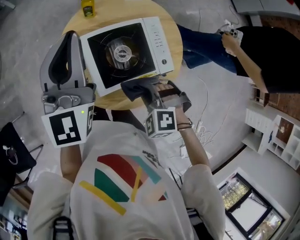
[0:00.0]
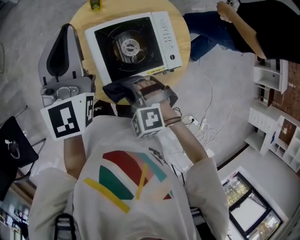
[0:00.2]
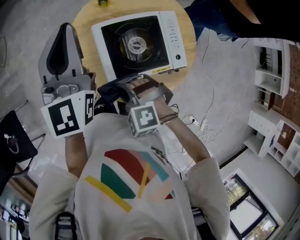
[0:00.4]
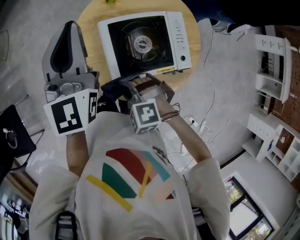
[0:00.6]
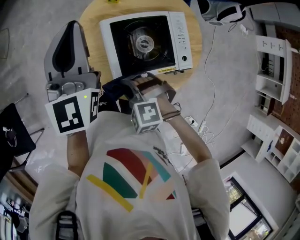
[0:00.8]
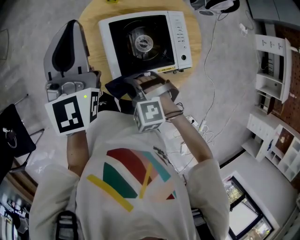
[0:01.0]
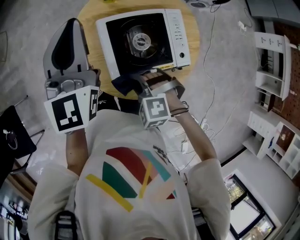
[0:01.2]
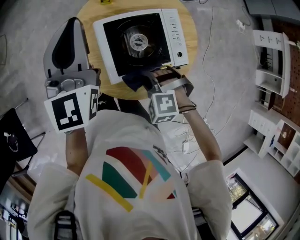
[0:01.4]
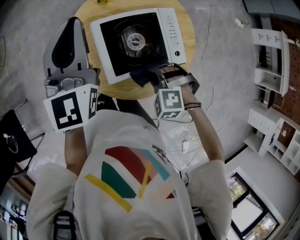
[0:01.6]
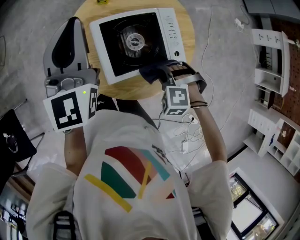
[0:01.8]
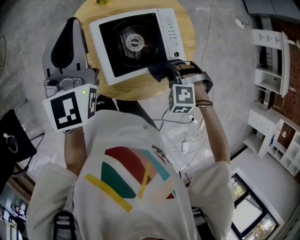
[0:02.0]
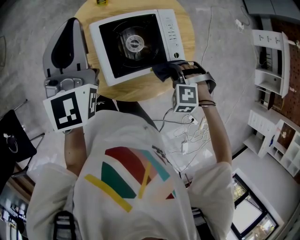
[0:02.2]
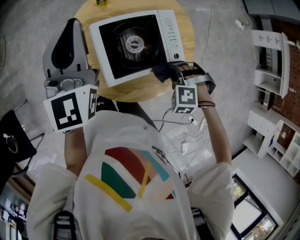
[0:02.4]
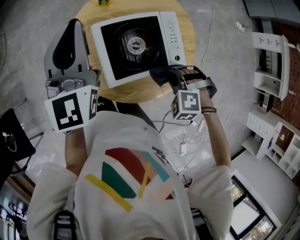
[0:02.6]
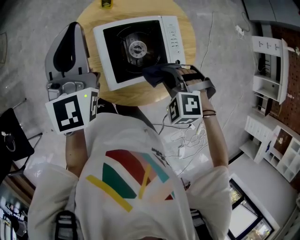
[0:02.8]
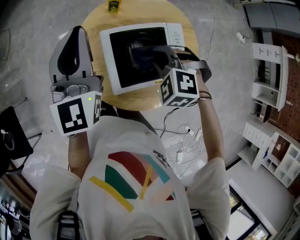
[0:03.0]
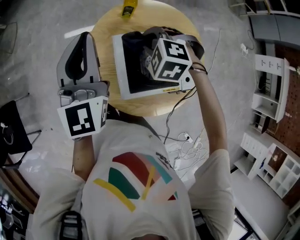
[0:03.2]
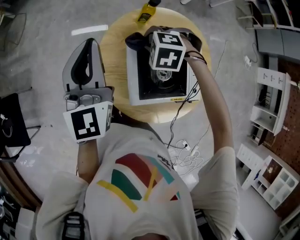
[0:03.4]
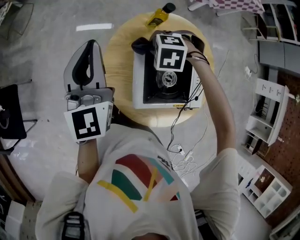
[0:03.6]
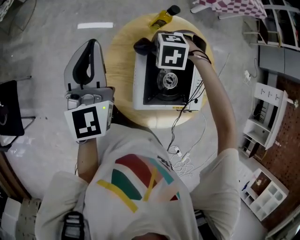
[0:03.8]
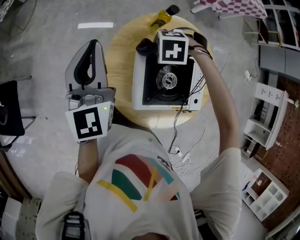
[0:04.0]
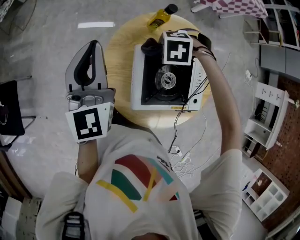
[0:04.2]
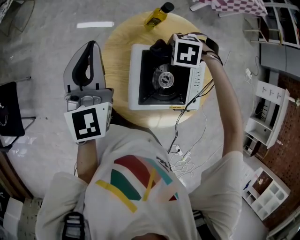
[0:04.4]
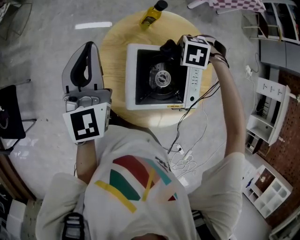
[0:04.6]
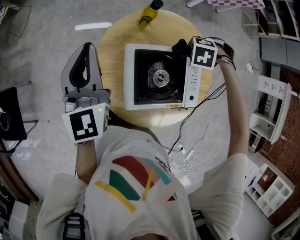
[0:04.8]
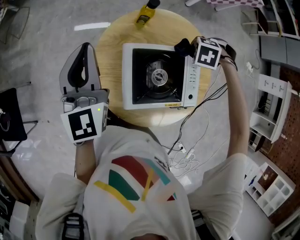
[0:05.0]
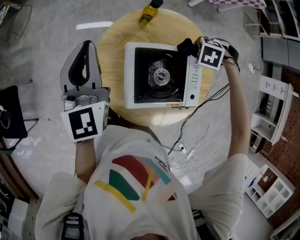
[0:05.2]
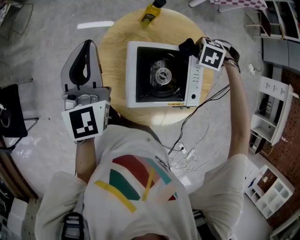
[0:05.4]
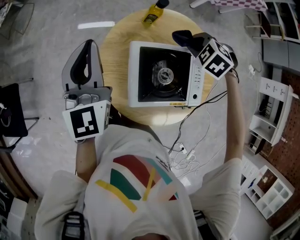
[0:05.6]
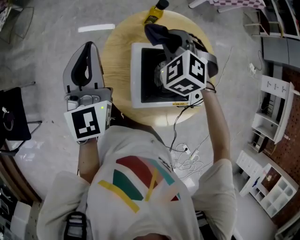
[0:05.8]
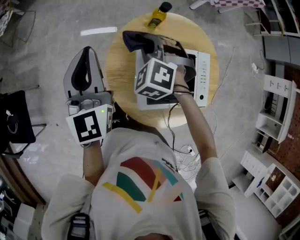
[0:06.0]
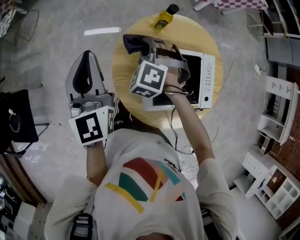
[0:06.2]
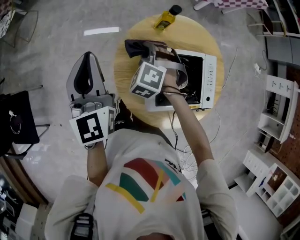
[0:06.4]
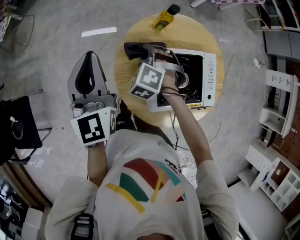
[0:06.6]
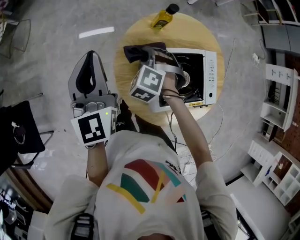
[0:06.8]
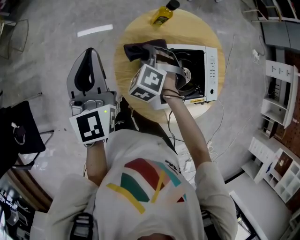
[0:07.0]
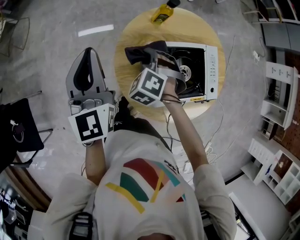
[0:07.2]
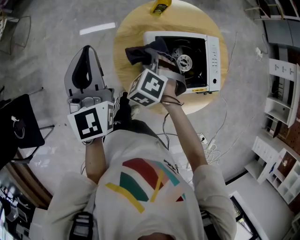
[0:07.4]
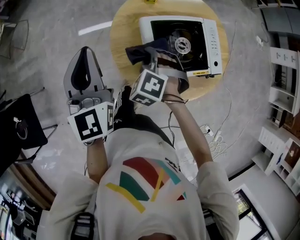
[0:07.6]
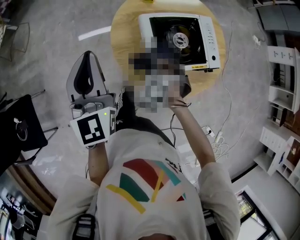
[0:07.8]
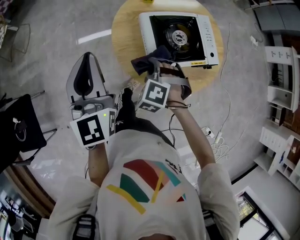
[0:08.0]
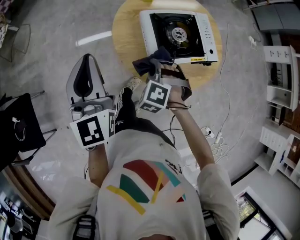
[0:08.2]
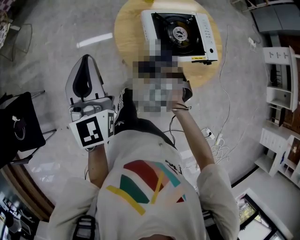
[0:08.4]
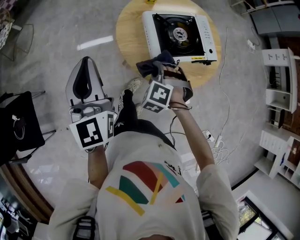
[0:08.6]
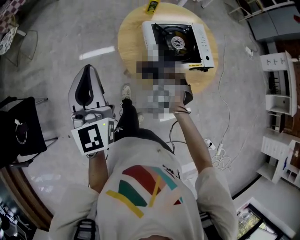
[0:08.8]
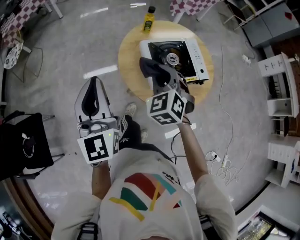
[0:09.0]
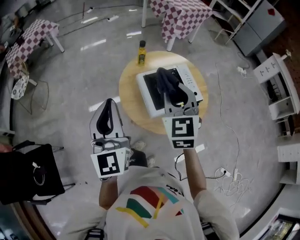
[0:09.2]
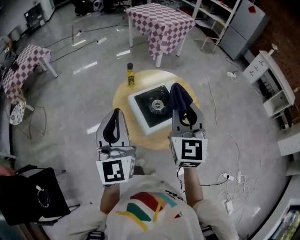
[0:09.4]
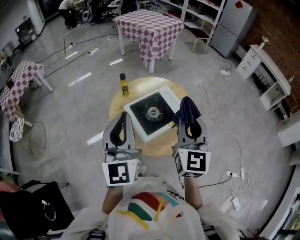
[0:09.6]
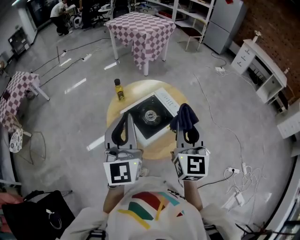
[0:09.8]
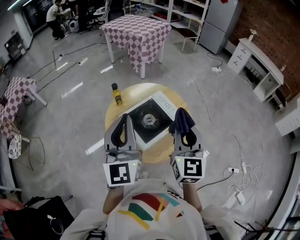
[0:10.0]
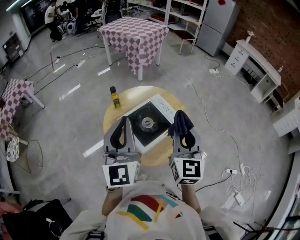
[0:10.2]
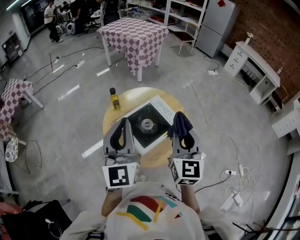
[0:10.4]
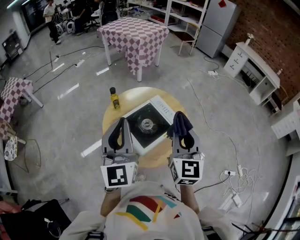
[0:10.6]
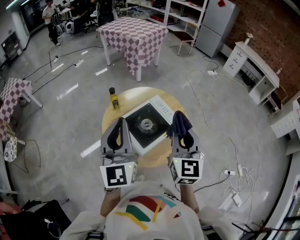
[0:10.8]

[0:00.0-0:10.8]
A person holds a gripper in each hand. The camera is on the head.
0:00.0 to 0:01.6: The right gripper reaches roughly 15 cm to the left, then returns.
0:01.6 to 0:03.0: The right gripper heads forward and upward, covering roughly 15 cm.
0:03.0 to 0:04.6: The right gripper shifts by approximately 15 cm, and turns by roughly 40 degrees. Meanwhile the left gripper ends up roughly 10 cm from where it was.
0:04.6 to 0:06.2: The right gripper ends up some 20 cm from where it was, and tips its fingers upward by some 40 degrees; the left gripper ends up about 5 cm from where it was.
0:06.2 to 0:07.8: The right gripper shifts roughly 20 cm backward. The left gripper is displaced backward by approximately 10 cm.
0:07.8 to 0:09.2: The left gripper moves upward and backward, some 15 cm; the right gripper shifts some 30 cm upward, and tilts its fingers roughly 40 degrees upward.
0:09.2 to 0:10.8: The left gripper shifts approximately 15 cm forward, to the right and upward, and swivels some 20 degrees. Meanwhile the right gripper is displaced to the right by approximately 15 cm, and swivels some 30 degrees.

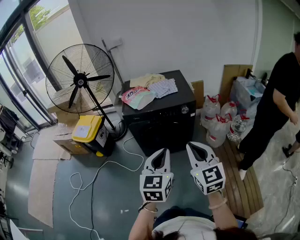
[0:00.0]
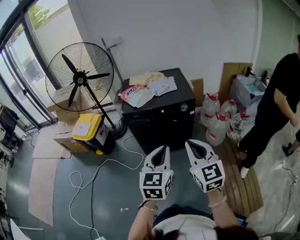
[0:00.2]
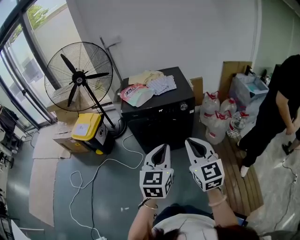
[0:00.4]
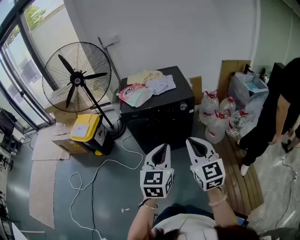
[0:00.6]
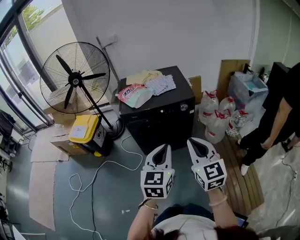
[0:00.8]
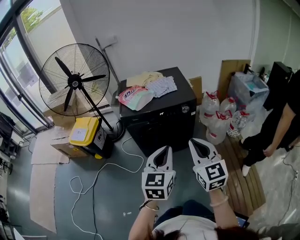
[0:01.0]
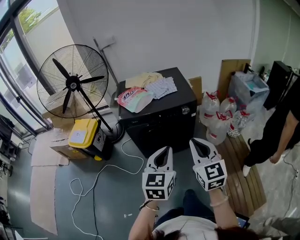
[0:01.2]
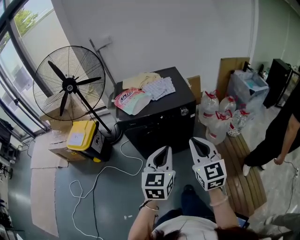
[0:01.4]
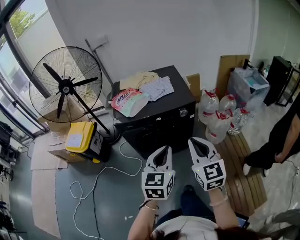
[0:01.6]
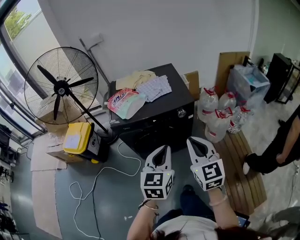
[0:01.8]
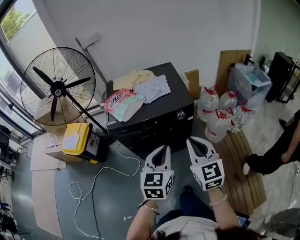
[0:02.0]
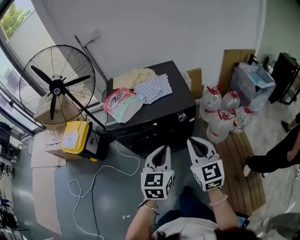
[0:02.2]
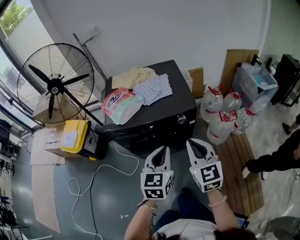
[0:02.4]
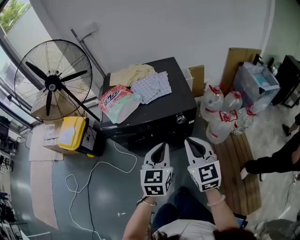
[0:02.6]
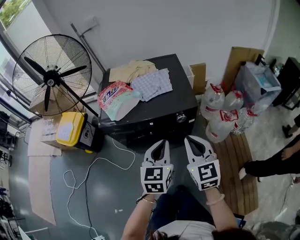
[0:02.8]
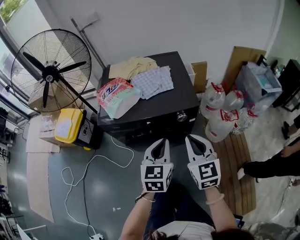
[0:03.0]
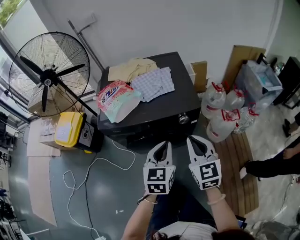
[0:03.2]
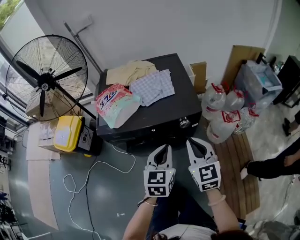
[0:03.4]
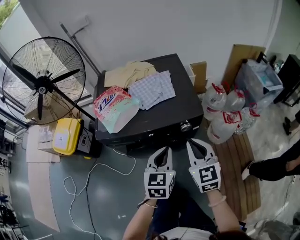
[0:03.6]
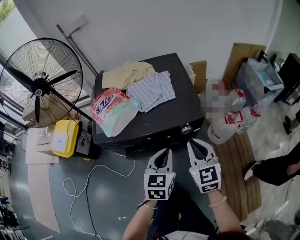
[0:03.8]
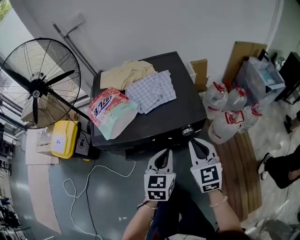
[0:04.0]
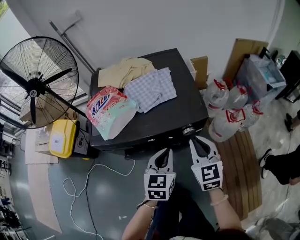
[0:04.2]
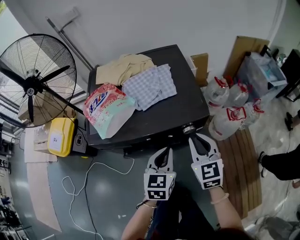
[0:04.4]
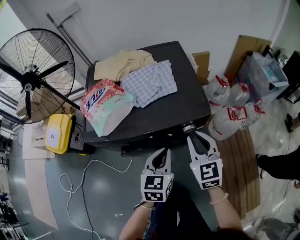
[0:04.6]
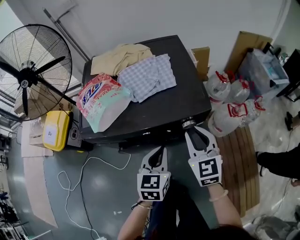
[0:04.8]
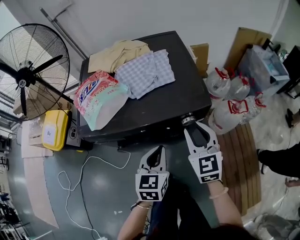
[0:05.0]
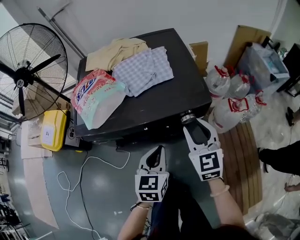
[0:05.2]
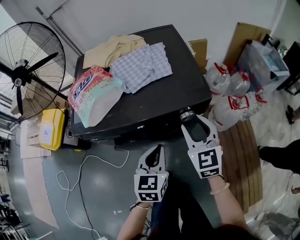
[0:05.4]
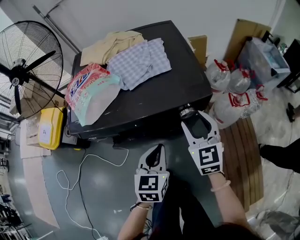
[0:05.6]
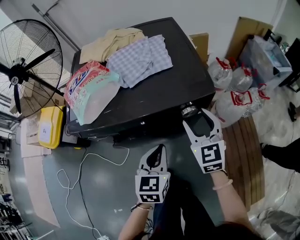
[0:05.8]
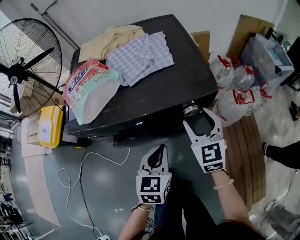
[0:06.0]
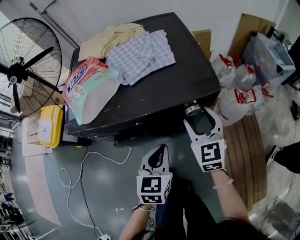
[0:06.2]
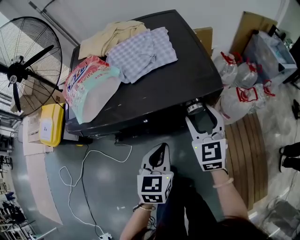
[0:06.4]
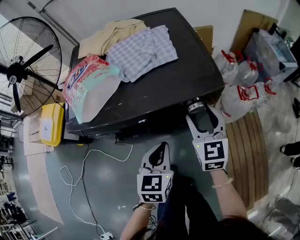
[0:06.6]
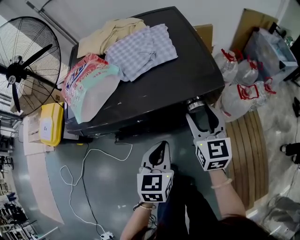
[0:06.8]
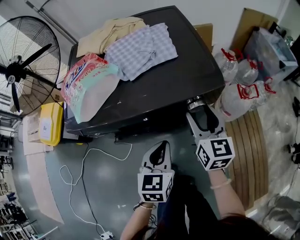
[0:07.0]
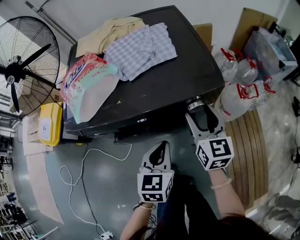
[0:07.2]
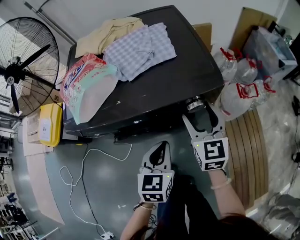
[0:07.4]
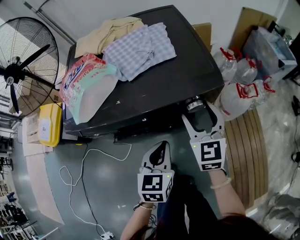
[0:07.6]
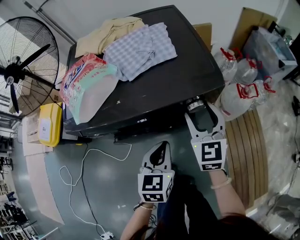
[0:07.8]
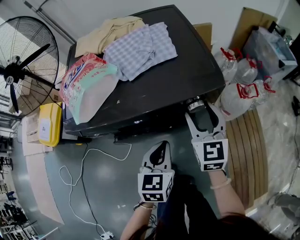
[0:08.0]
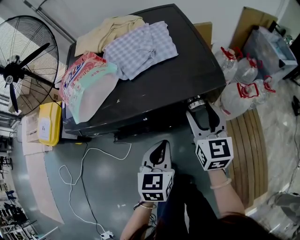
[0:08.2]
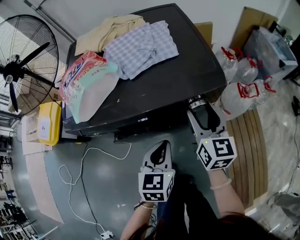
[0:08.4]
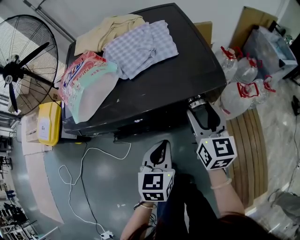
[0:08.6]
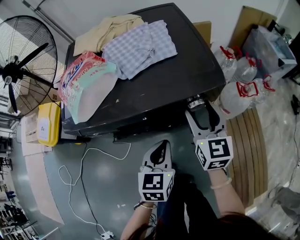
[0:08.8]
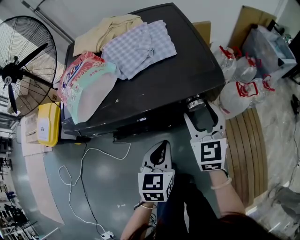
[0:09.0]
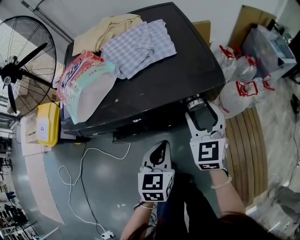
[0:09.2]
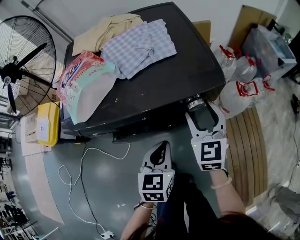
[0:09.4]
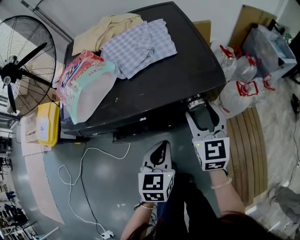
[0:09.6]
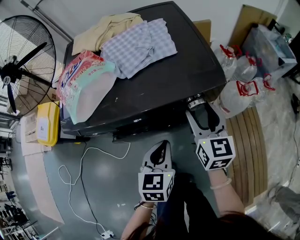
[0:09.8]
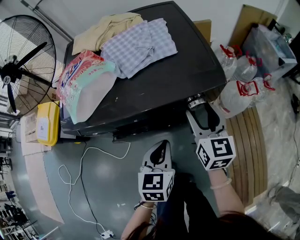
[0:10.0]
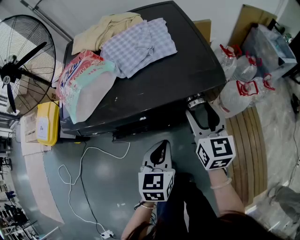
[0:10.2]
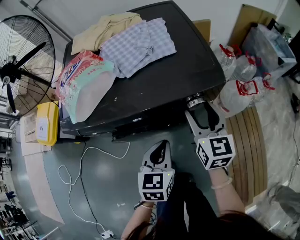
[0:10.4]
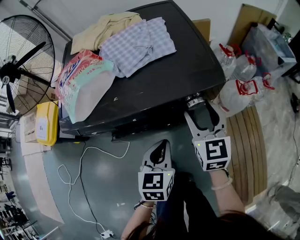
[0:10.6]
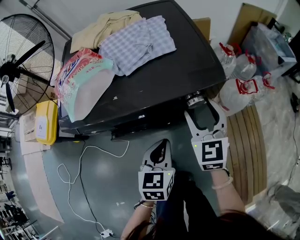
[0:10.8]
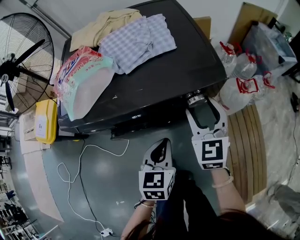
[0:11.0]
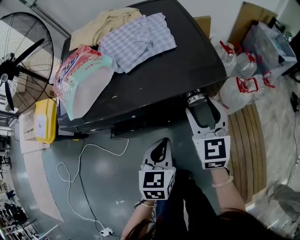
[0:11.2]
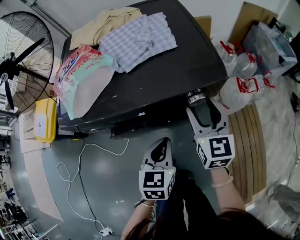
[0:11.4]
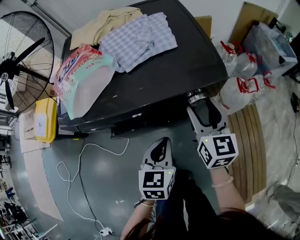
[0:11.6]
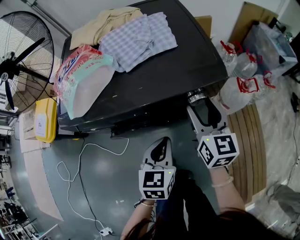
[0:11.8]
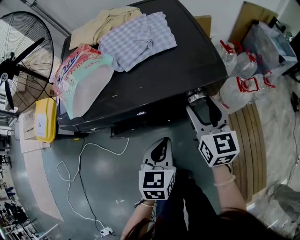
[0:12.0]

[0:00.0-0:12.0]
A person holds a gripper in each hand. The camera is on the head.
0:00.0 to 0:01.6: Both grippers move forward, approximately 15 cm.
0:01.6 to 0:03.0: The grippers both shift forward and downward by approximately 20 cm.
0:03.0 to 0:04.4: The right gripper shifts about 15 cm forward and downward. Meanwhile the left gripper heads downward and forward, covering roughly 15 cm.
0:04.4 to 0:06.0: Both grippers move downward, approximately 10 cm. The right gripper opens up.

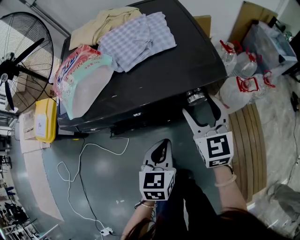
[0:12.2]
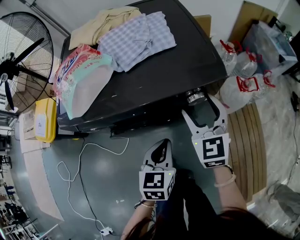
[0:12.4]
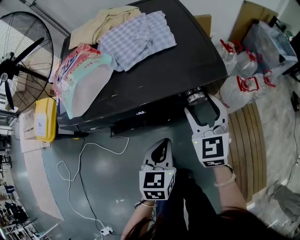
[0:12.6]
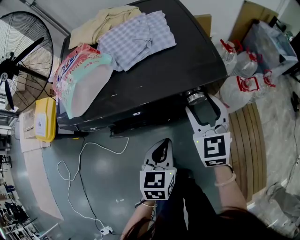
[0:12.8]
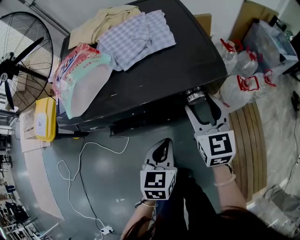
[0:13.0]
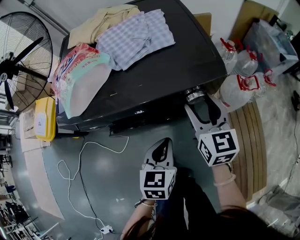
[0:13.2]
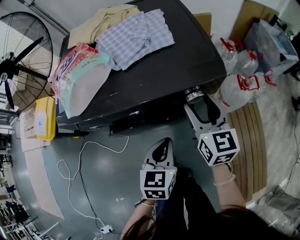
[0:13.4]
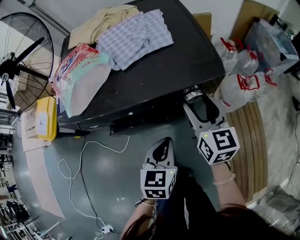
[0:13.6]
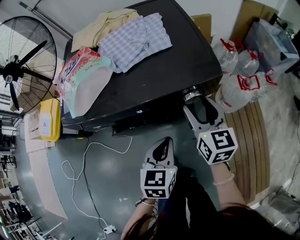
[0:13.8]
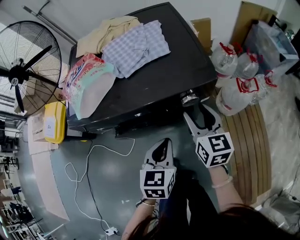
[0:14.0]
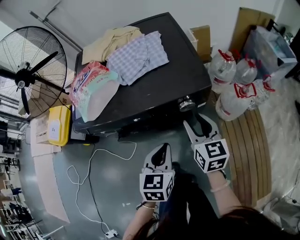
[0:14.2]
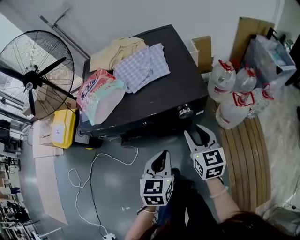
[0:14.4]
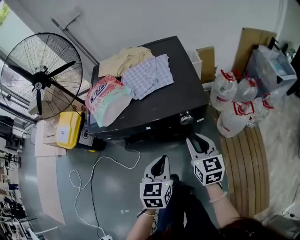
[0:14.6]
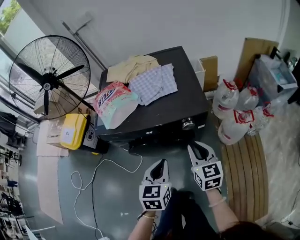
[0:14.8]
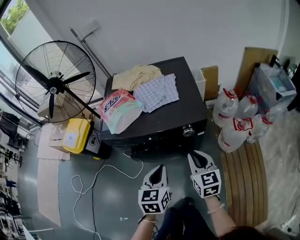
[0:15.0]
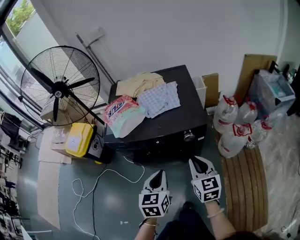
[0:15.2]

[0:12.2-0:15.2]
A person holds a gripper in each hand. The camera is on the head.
0:12.2 to 0:13.8: The grippers stay close to where they were, moving slightly.
0:13.8 to 0:15.2: The left gripper travels upward and backward by some 15 cm, while the right gripper goes about 15 cm backward and upward, and closes up.
